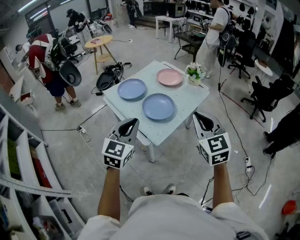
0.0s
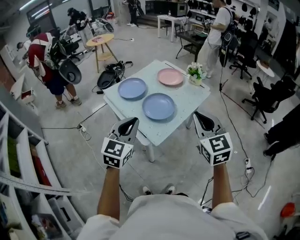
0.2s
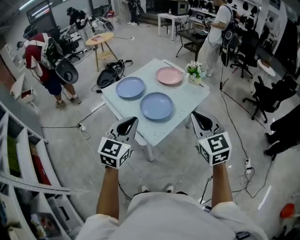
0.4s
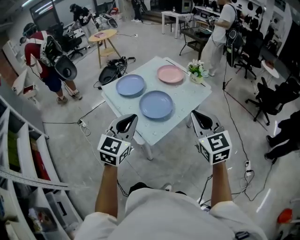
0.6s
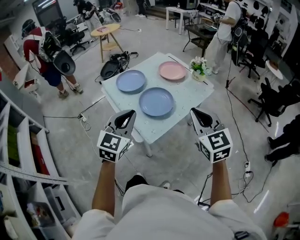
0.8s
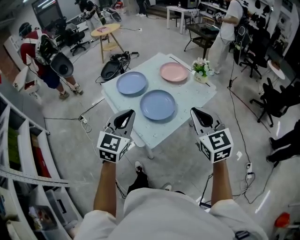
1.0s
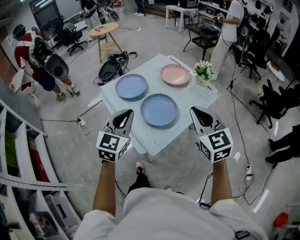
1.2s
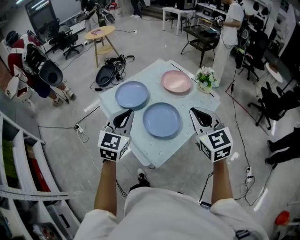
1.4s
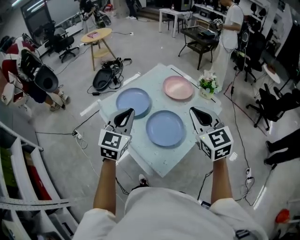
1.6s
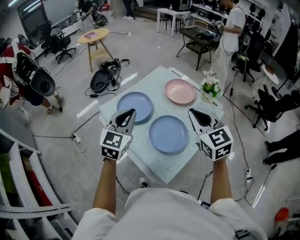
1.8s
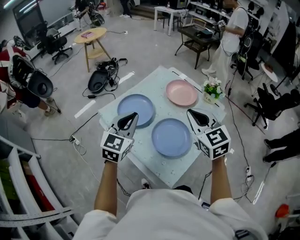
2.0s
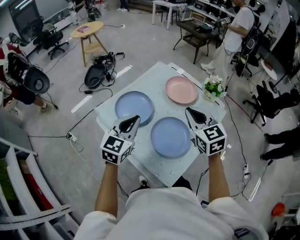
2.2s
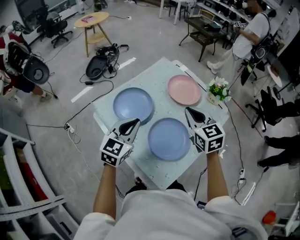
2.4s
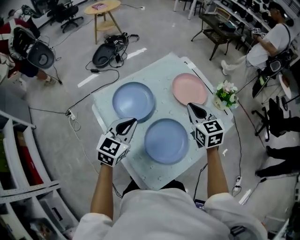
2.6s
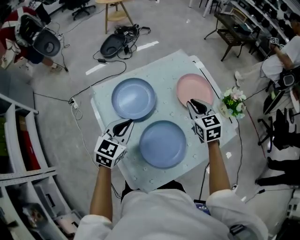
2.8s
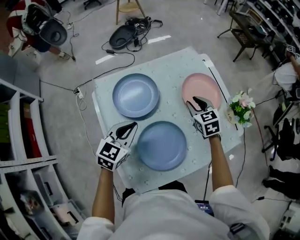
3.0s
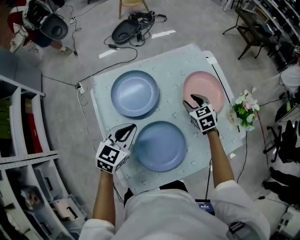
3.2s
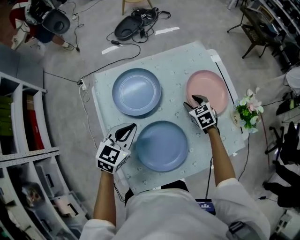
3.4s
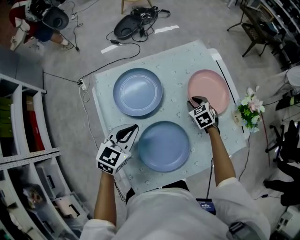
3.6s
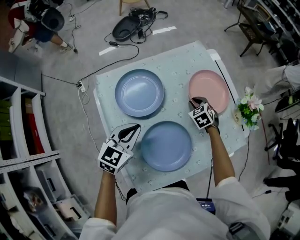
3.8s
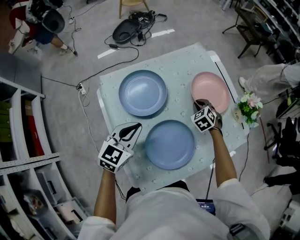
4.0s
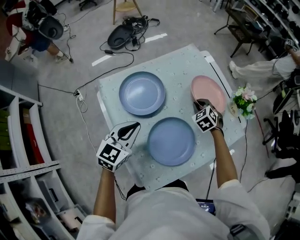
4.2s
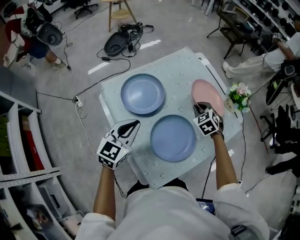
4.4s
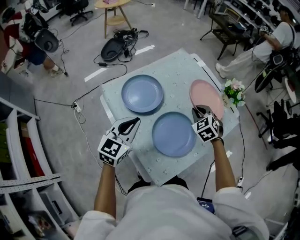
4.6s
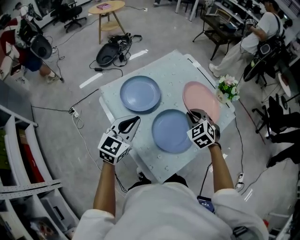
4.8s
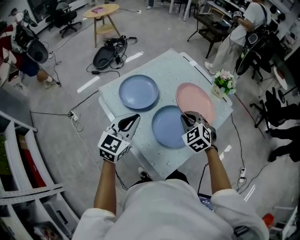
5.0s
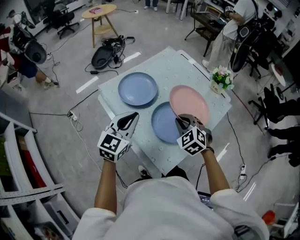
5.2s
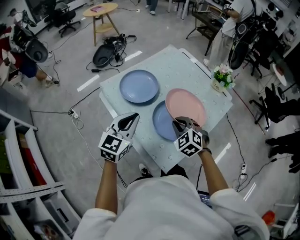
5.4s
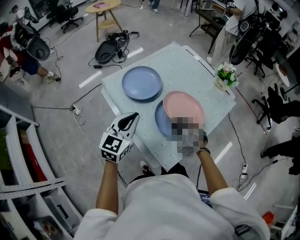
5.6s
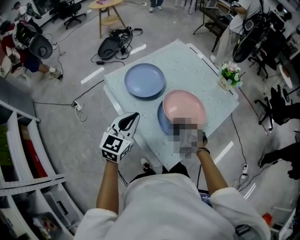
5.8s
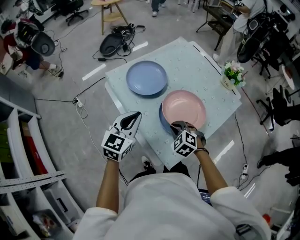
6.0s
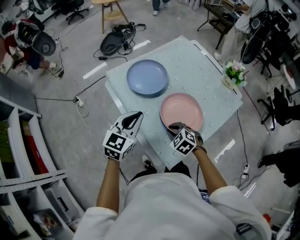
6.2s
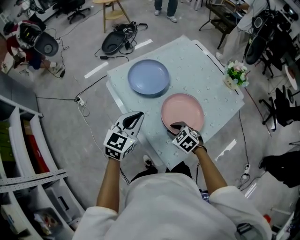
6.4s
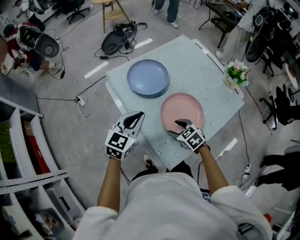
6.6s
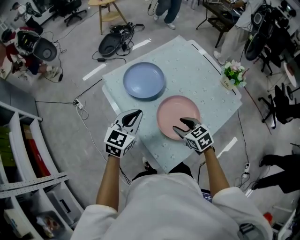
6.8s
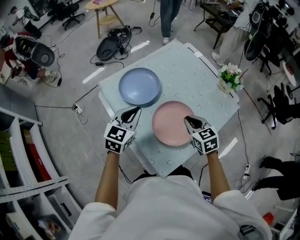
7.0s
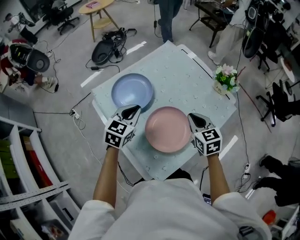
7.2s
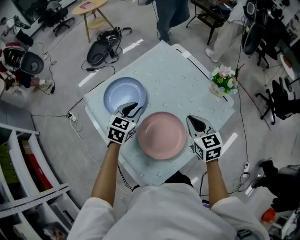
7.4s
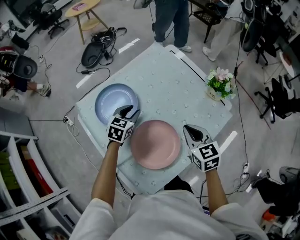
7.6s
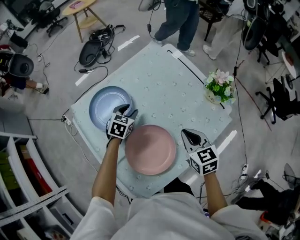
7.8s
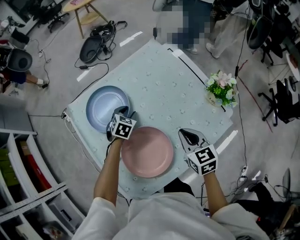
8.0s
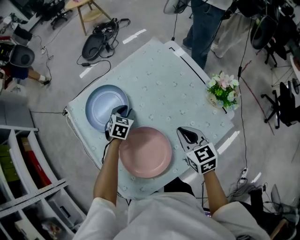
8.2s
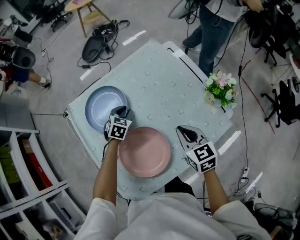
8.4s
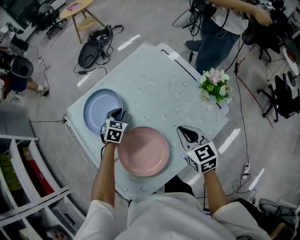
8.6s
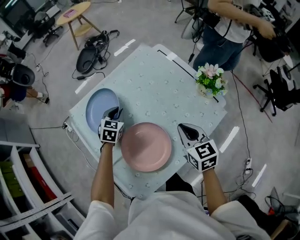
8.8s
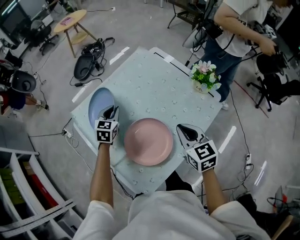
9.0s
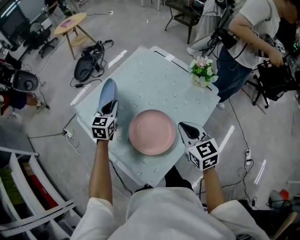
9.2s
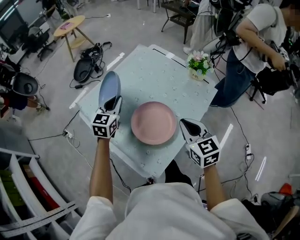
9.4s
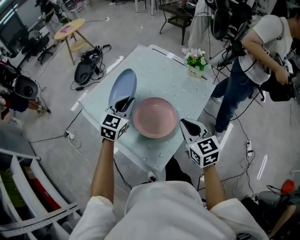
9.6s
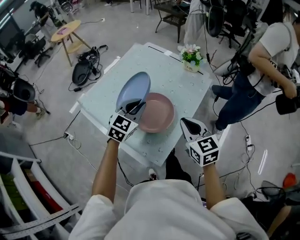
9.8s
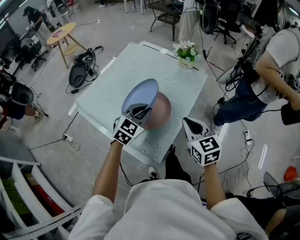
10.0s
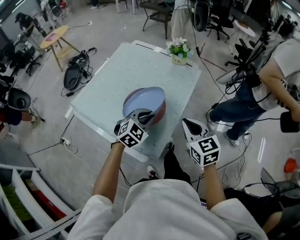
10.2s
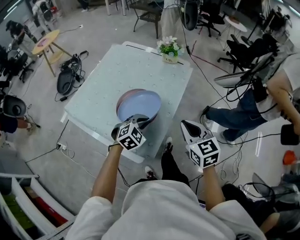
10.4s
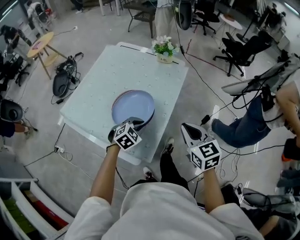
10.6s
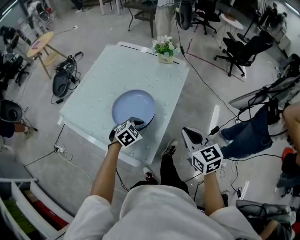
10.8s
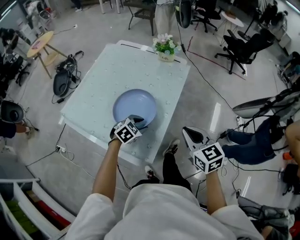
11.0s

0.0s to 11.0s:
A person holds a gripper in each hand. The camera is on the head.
0.0s to 1.6s: The grippers both shift forward by about 25 cm.
1.6s to 3.2s: The right gripper travels forward and downward by some 50 cm, tilts its fingers about 30 degrees downward, and opens up; the left gripper is displaced downward and forward by about 25 cm, and turns by about 30 degrees.
3.2s to 4.8s: The left gripper goes about 15 cm upward, backward and to the left, and turns by roughly 20 degrees. Meanwhile the right gripper heads backward and upward, covering about 25 cm, changes its angle by some 20 degrees, and closes.
4.8s to 6.2s: The left gripper shifts about 5 cm backward. Meanwhile the right gripper moves backward, downward and to the left, some 25 cm, and rotates roughly 20 degrees.
6.2s to 7.8s: The right gripper shifts roughly 30 cm to the right, forward and upward, swivels some 40 degrees, and opens, then closes once more. The left gripper travels forward, downward and to the right by about 35 cm, turns by approximately 30 degrees, and opens its fingers.
7.8s to 9.4s: The right gripper moves backward and upward, approximately 20 cm. Meanwhile the left gripper moves upward, backward and to the left, approximately 20 cm, turns by about 30 degrees, and closes.
9.4s to 11.0s: The left gripper shifts by about 30 cm, angles its fingers downward, by roughly 30 degrees, and opens up. Meanwhile the right gripper ends up some 15 cm from where it was.

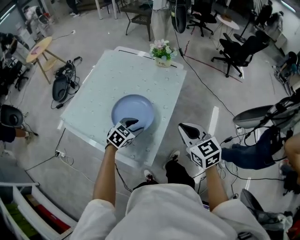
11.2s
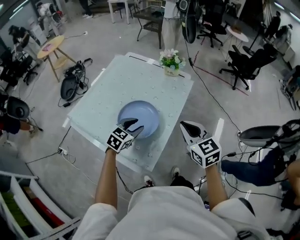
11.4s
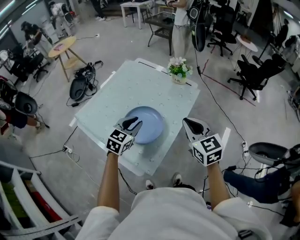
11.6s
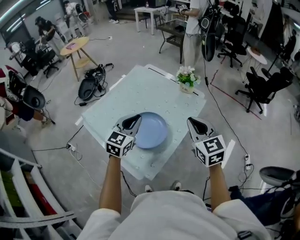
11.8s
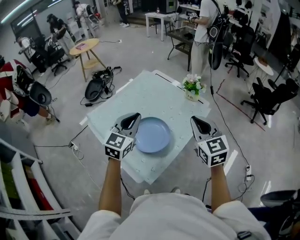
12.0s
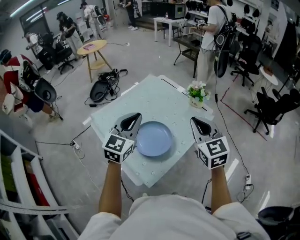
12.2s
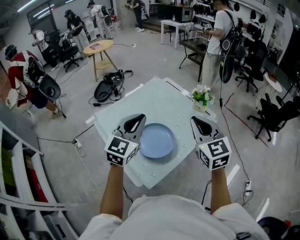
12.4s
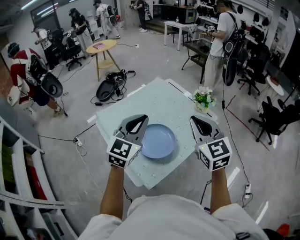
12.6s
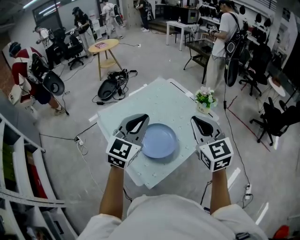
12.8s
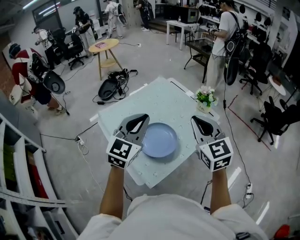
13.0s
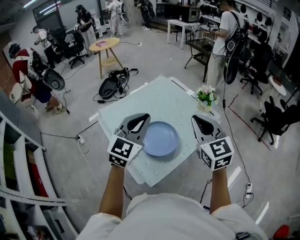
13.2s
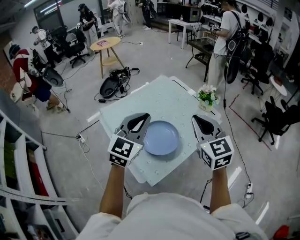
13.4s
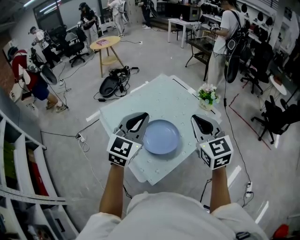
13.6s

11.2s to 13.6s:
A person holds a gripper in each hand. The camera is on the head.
11.2s to 12.4s: The left gripper is displaced upward by approximately 30 cm, tips its fingers upward by some 40 degrees, and closes; the right gripper shifts roughly 15 cm upward, and rotates some 30 degrees.
12.4s to 13.6s: The grippers make only small movements.

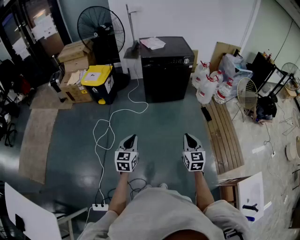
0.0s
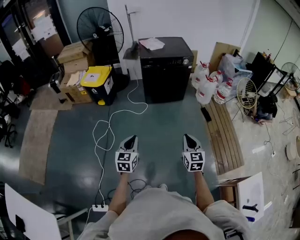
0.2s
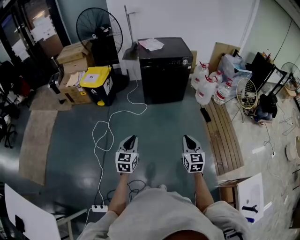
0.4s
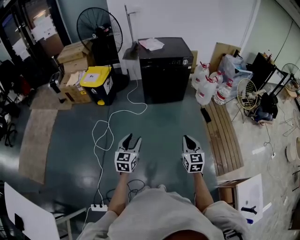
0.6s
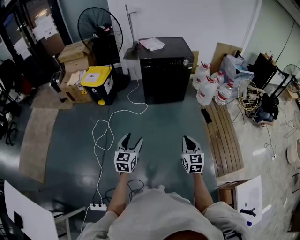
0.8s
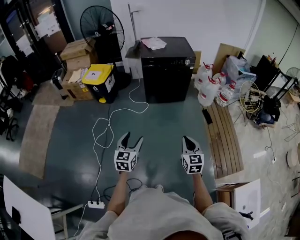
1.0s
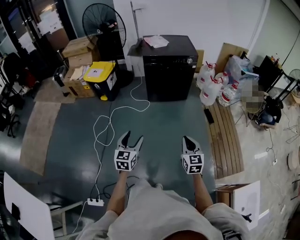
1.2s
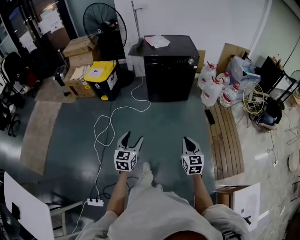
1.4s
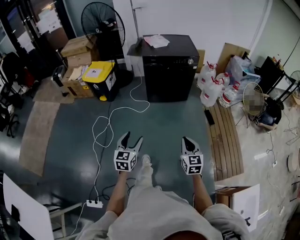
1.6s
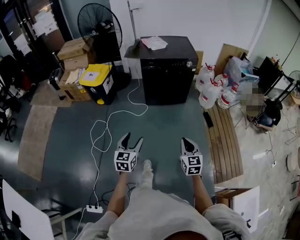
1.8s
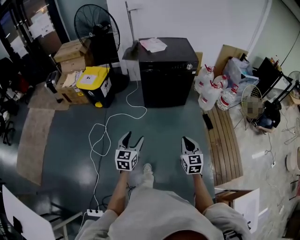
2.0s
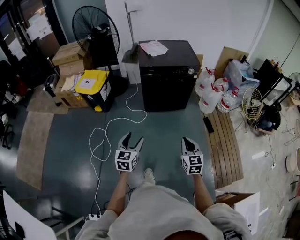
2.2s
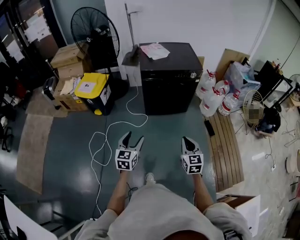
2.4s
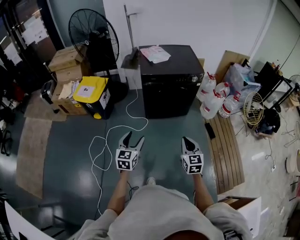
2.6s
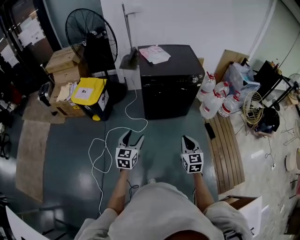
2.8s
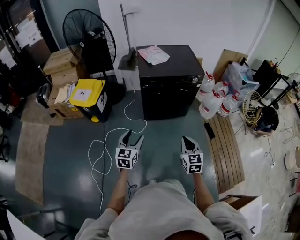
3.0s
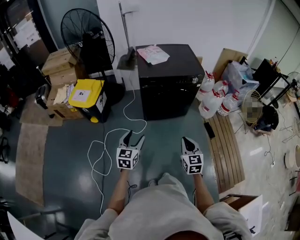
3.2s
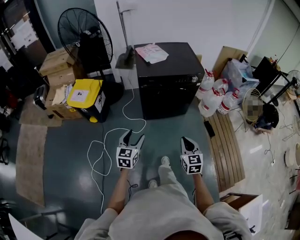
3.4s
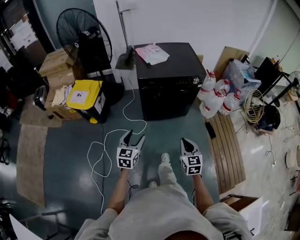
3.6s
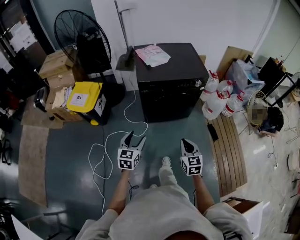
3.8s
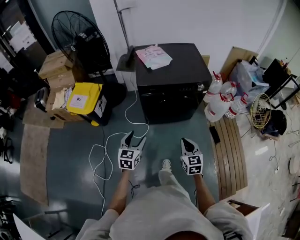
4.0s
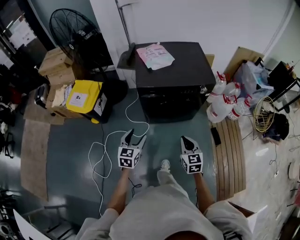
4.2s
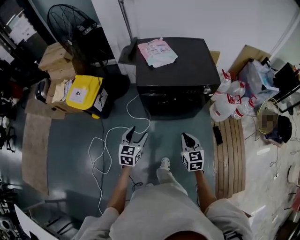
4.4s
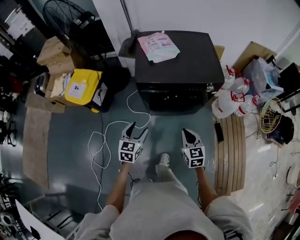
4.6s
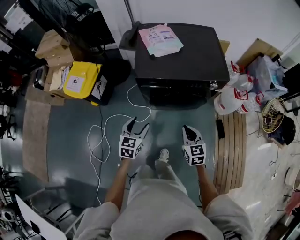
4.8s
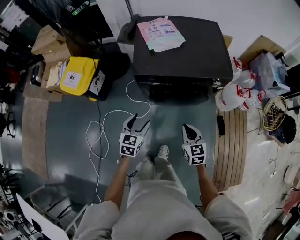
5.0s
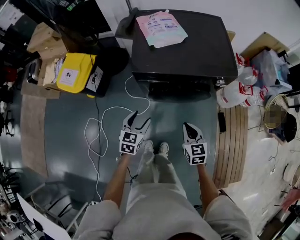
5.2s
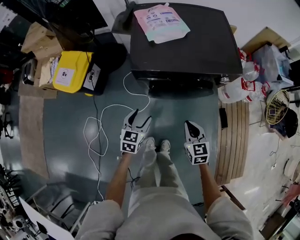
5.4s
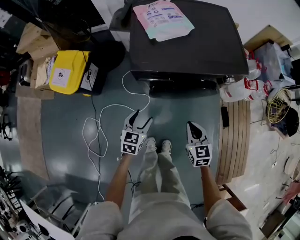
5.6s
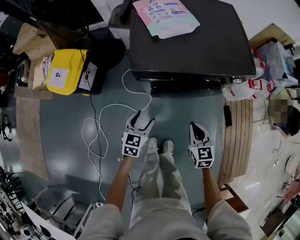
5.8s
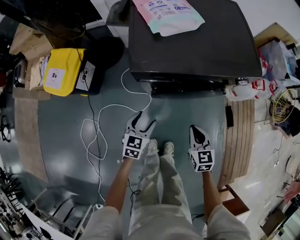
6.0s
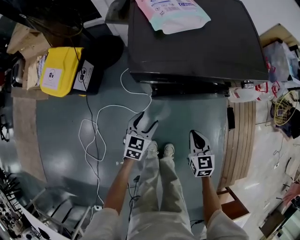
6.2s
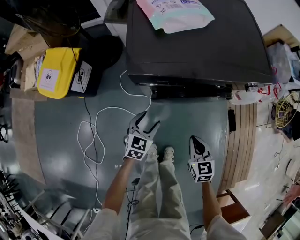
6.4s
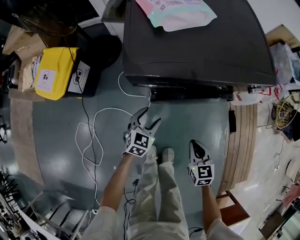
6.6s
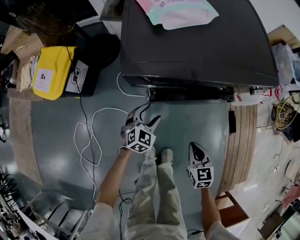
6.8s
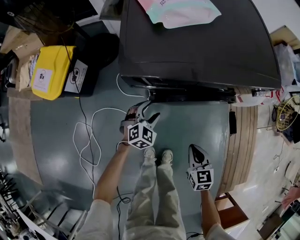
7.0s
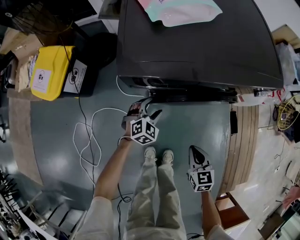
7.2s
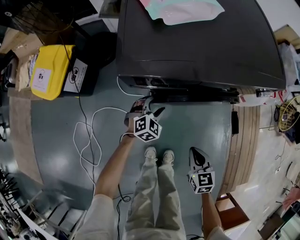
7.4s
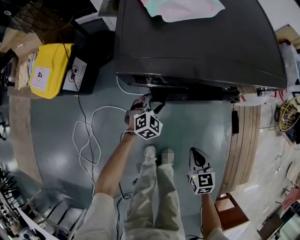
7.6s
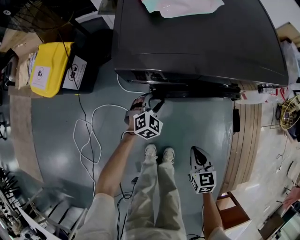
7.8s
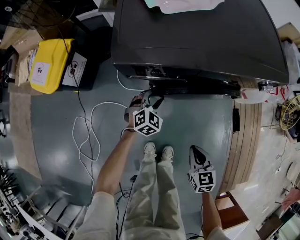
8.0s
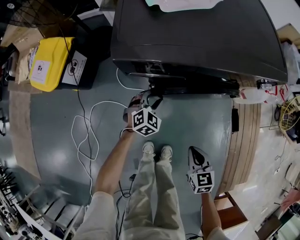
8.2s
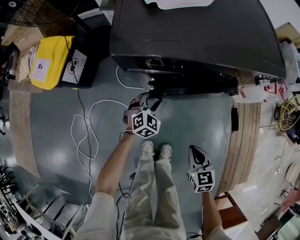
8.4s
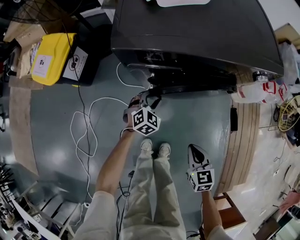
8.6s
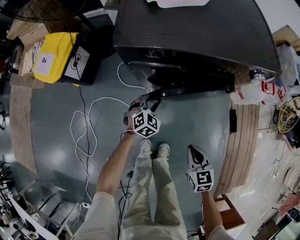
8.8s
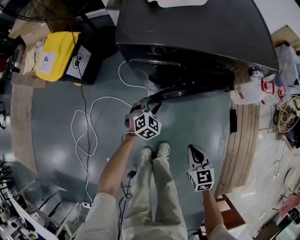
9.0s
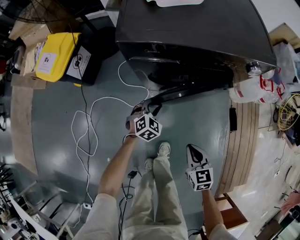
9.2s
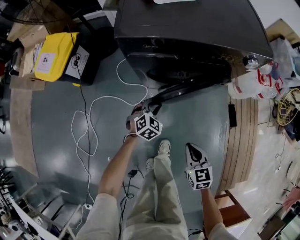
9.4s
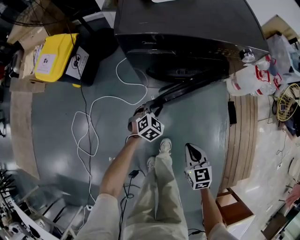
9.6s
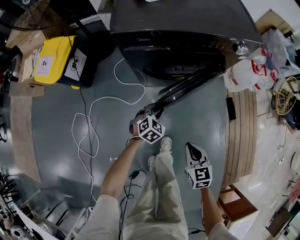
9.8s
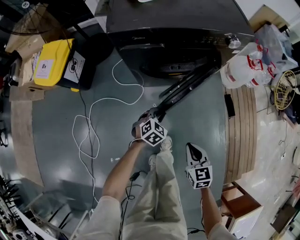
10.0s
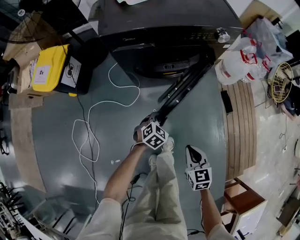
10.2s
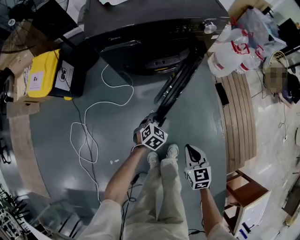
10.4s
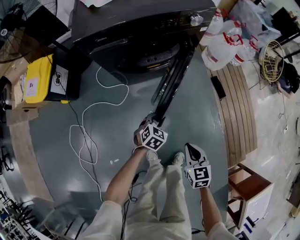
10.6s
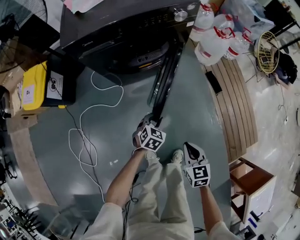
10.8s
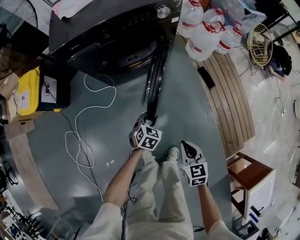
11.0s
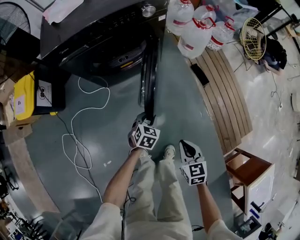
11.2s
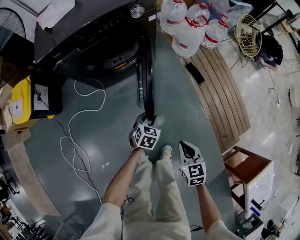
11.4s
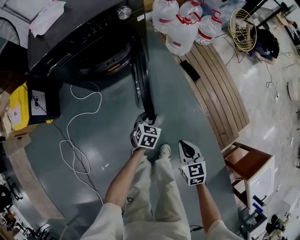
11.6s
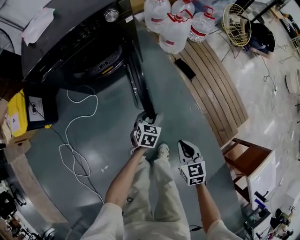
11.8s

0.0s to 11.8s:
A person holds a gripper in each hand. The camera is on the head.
0.0s to 1.4s: The right gripper changes place by some 5 cm. Meanwhile the left gripper is displaced to the right by some 5 cm, and opens up.
1.4s to 3.0s: The grippers both shift forward by some 35 cm.
3.0s to 4.4s: The two grippers go approximately 25 cm forward.
4.4s to 6.0s: Both grippers travel together downward and forward, some 25 cm.
6.0s to 7.4s: The left gripper goes approximately 20 cm downward and forward, and swivels about 40 degrees. Meanwhile the right gripper travels downward by about 15 cm.
7.4s to 8.8s: The two grippers go approximately 5 cm backward. The left gripper closes up.
8.8s to 10.4s: The right gripper heads backward, covering approximately 20 cm. Meanwhile the left gripper shifts approximately 25 cm backward and to the right.
10.4s to 11.8s: The two grippers go roughly 25 cm to the right.
